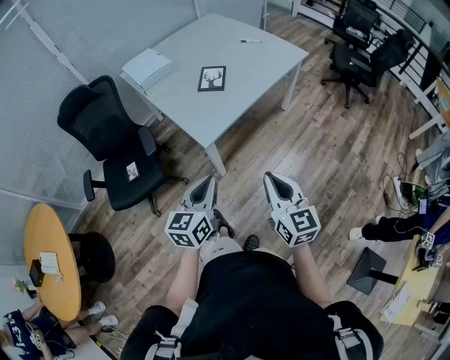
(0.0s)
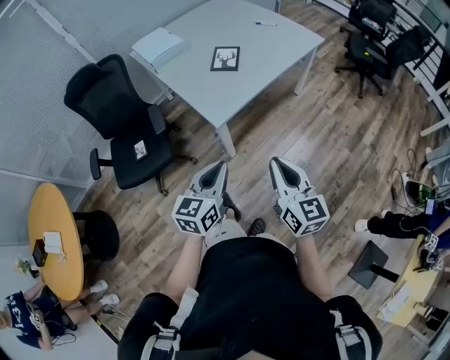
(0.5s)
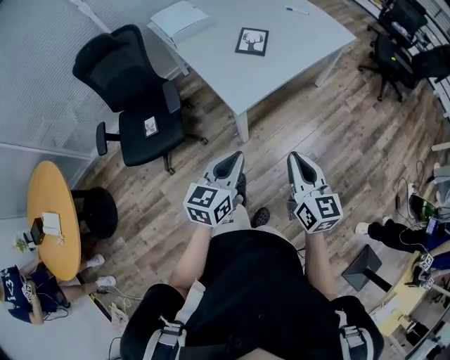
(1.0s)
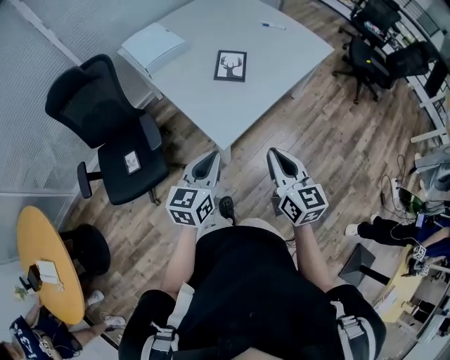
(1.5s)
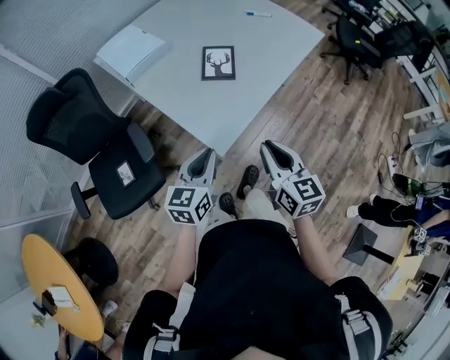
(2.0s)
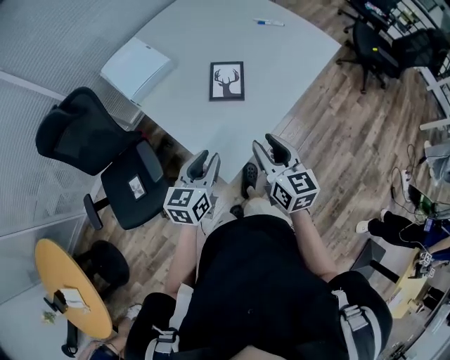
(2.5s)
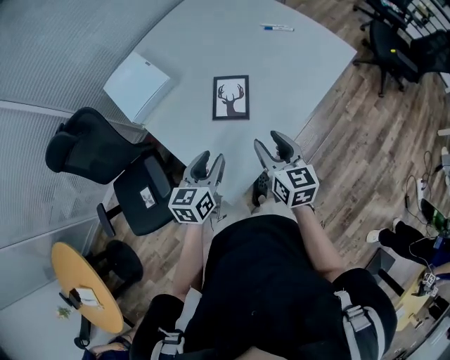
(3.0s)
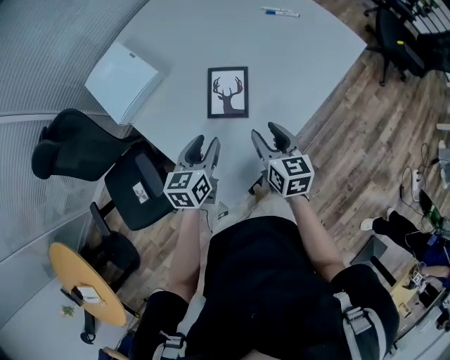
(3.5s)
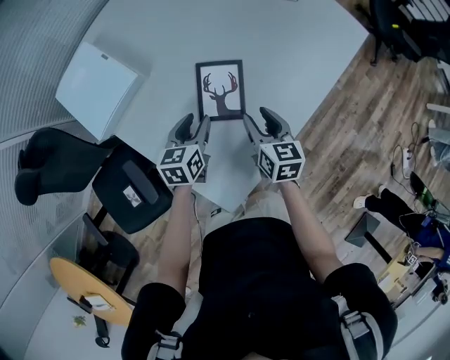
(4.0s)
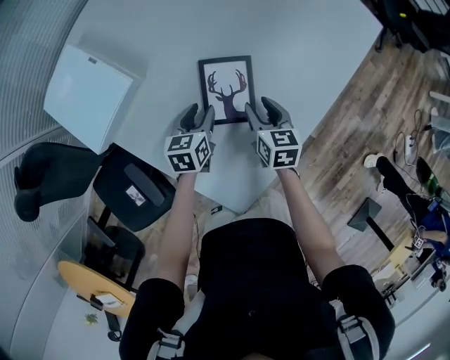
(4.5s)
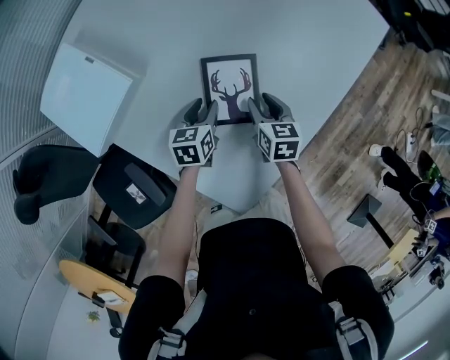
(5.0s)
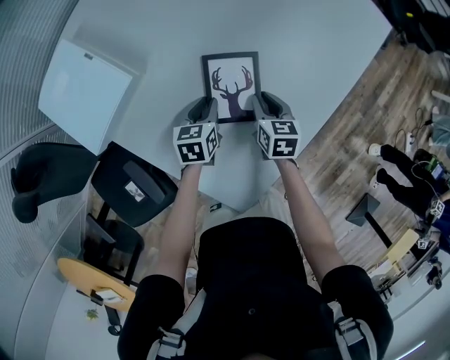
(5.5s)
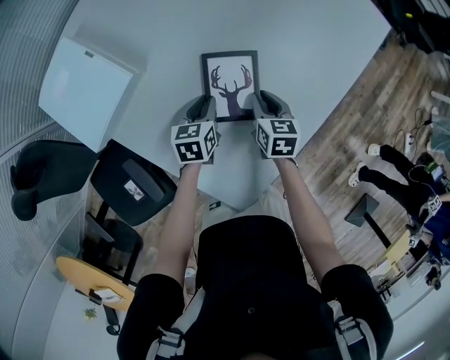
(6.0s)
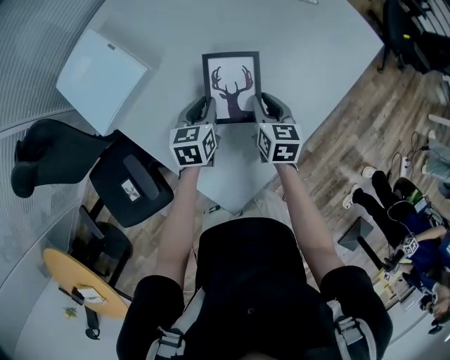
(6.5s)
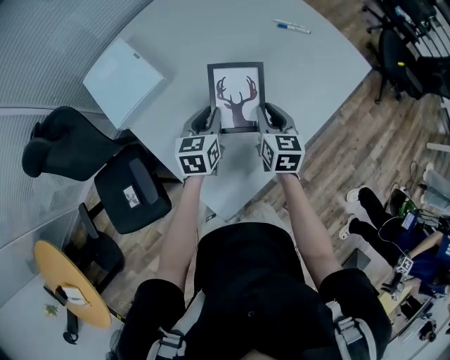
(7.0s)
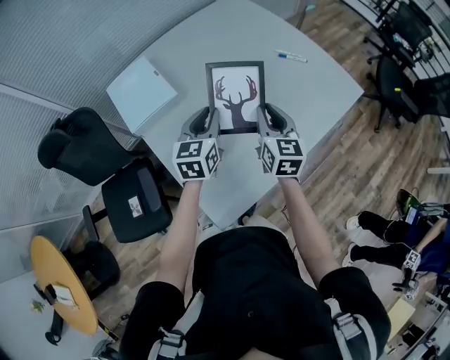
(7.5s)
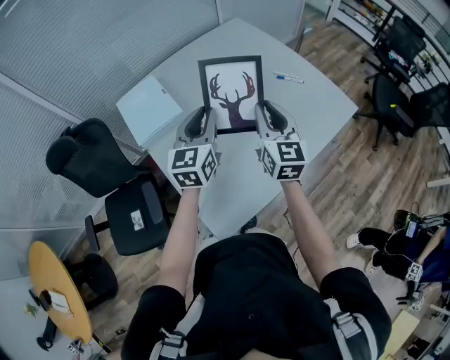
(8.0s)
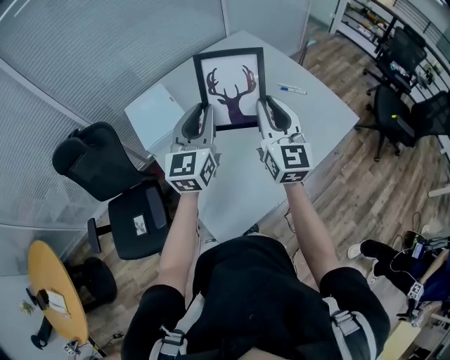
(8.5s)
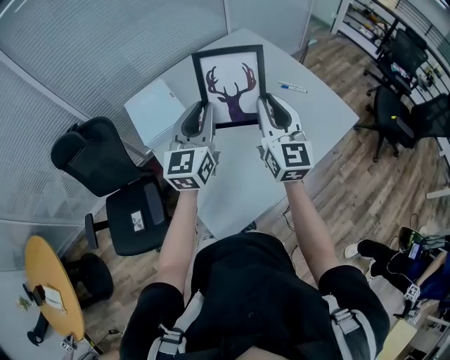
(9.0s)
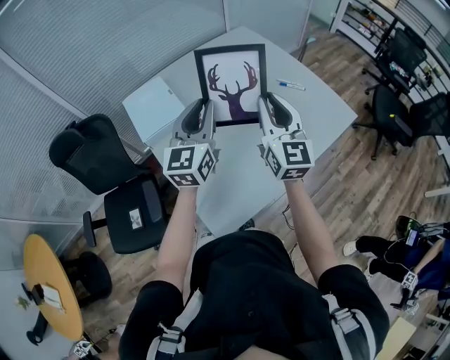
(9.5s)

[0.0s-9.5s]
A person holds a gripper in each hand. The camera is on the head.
0.0s to 2.0s: Both grippers travel together forward and to the left, approximately 30 cm.
2.0s to 4.0s: The pair of grippers is taken forward, approximately 40 cm. The left gripper opens up, while the right gripper heads downward, covering some 20 cm, and opens up.
4.0s to 5.5s: The two grippers go roughly 15 cm downward and forward. The right gripper closes up.
5.5s to 7.5s: The grippers both shift upward by about 30 cm. The right gripper angles its fingers upward, by some 30 degrees. Meanwhile the left gripper changes its angle by approximately 30 degrees.
7.5s to 9.5s: The grippers both shift upward by about 15 cm. The right gripper changes its angle by some 30 degrees. Meanwhile the left gripper changes its angle by some 20 degrees.

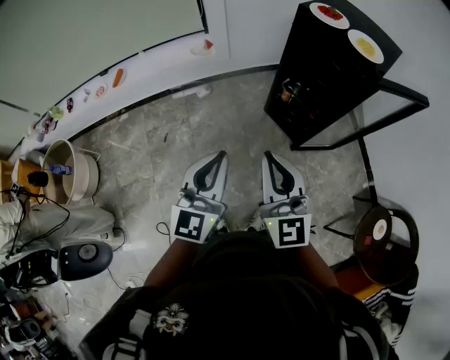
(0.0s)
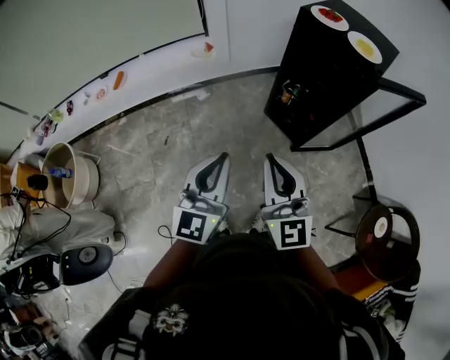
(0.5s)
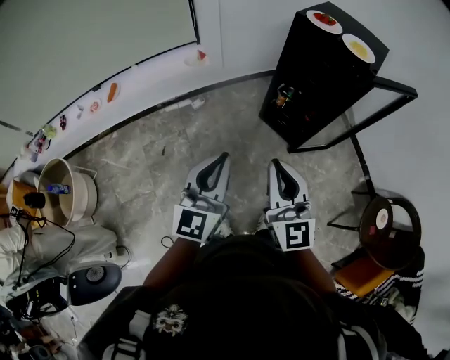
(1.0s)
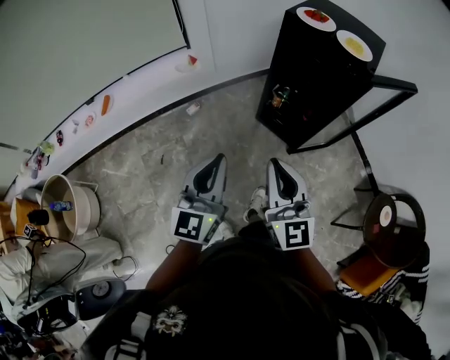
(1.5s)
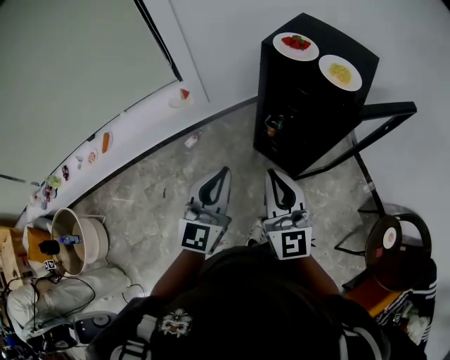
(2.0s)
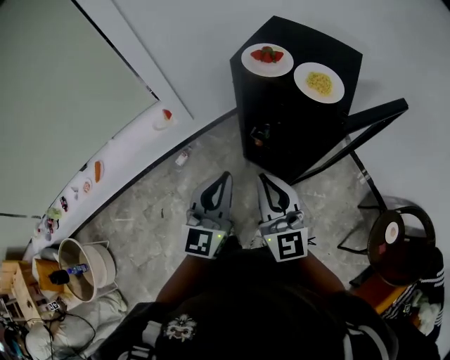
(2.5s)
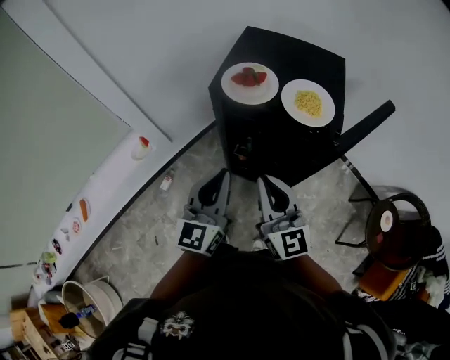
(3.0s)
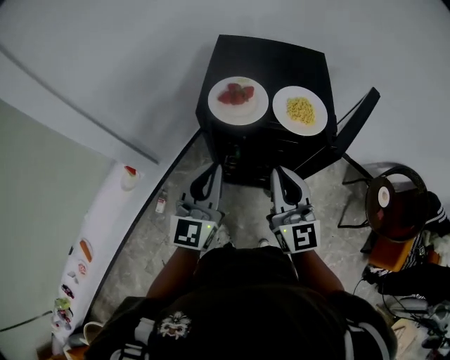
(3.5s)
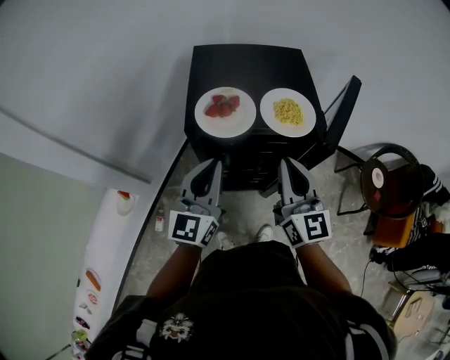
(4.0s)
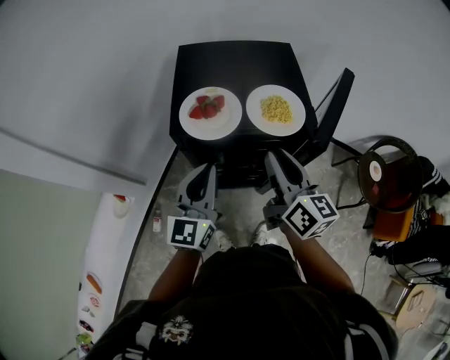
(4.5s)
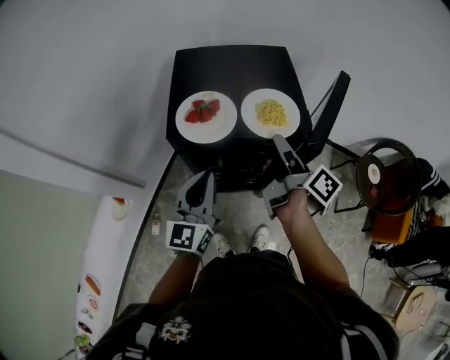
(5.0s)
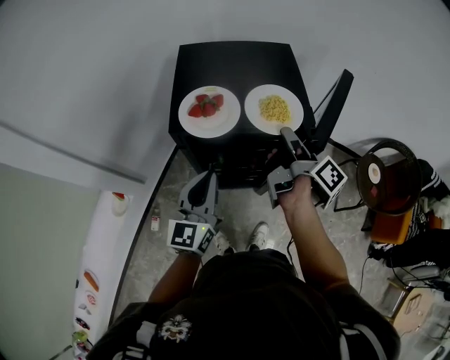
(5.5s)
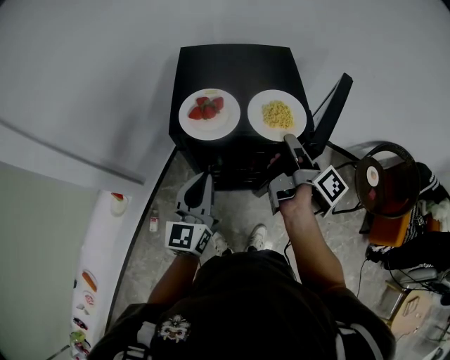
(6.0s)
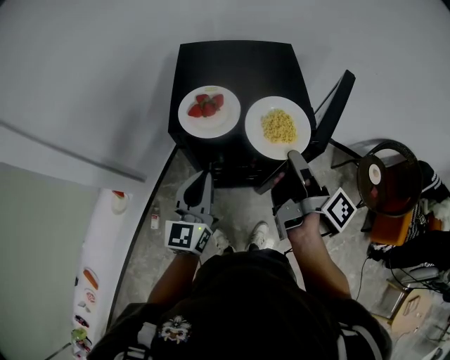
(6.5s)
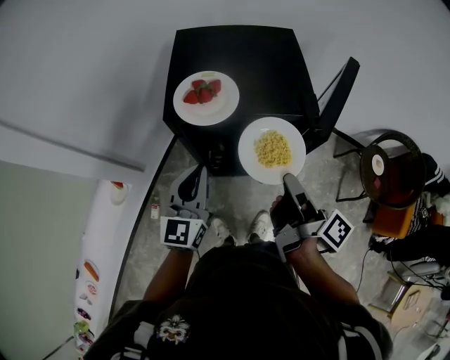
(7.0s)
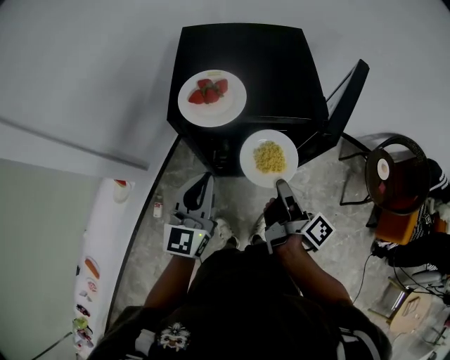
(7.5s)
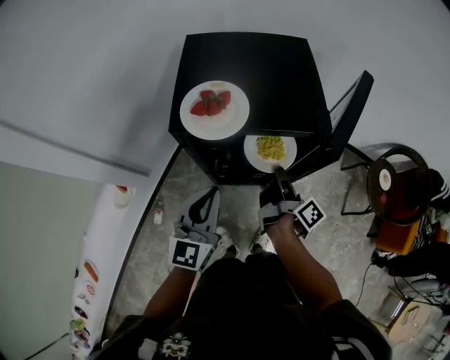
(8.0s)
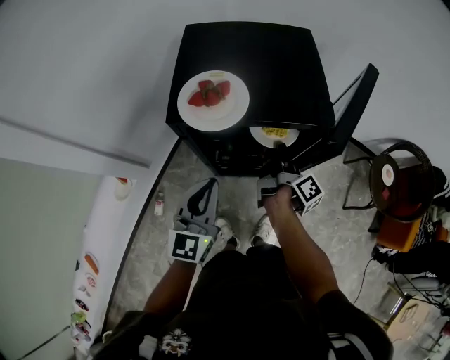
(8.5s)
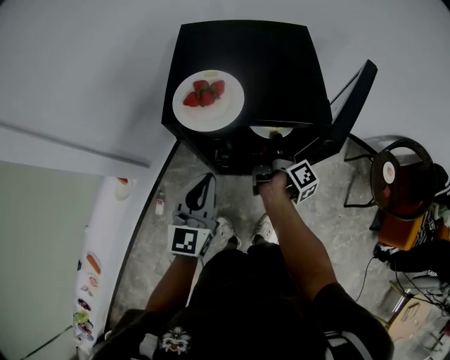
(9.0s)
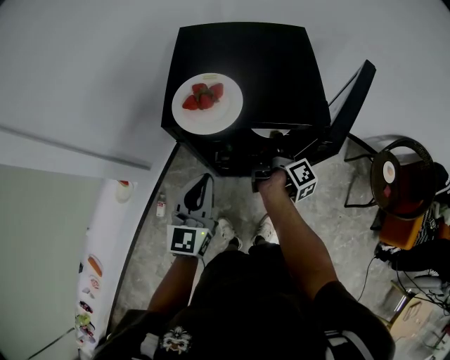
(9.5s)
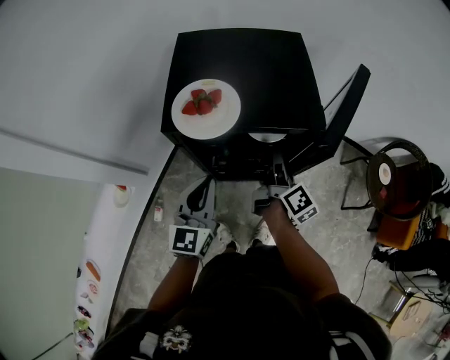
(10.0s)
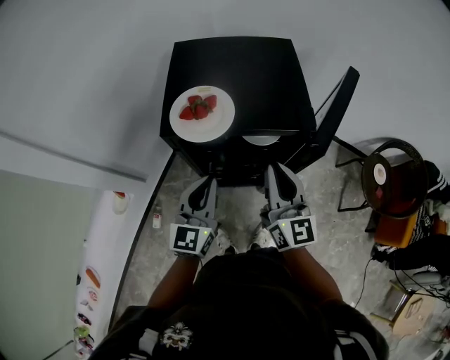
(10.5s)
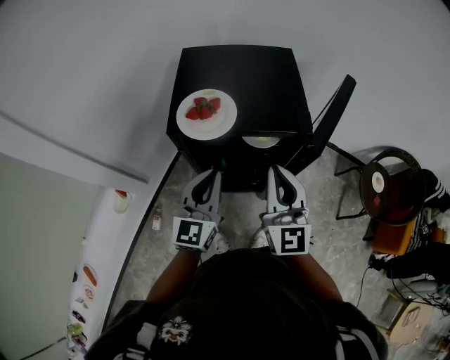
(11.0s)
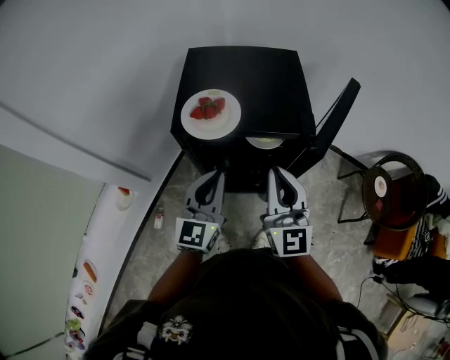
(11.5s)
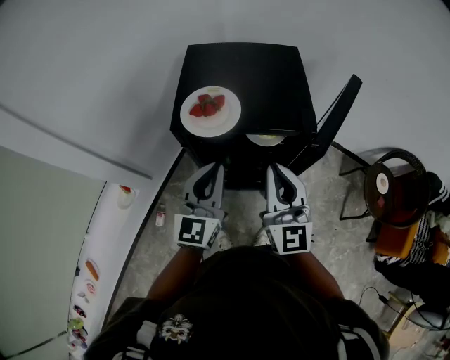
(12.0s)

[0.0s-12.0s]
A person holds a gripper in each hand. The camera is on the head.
0.0s to 2.0s: The grippers both shift forward by about 15 cm.
2.0s to 4.0s: The left gripper shifts by approximately 35 cm, and rotates approximately 40 degrees. Meanwhile the right gripper moves some 30 cm, and rotates approximately 40 degrees.
4.0s to 6.0s: The right gripper is displaced forward and to the right by roughly 10 cm, rolls clockwise, seen from behind, by some 80 degrees, and opens and closes again.
6.0s to 8.0s: The right gripper shifts roughly 15 cm downward.
8.0s to 10.0s: The right gripper rotates some 20 degrees, and opens.
10.0s to 12.0s: The right gripper moves upward and backward, some 20 cm, rolls counterclockwise, seen from behind, by about 60 degrees, and closes its fingers. The left gripper shifts roughly 5 cm upward.

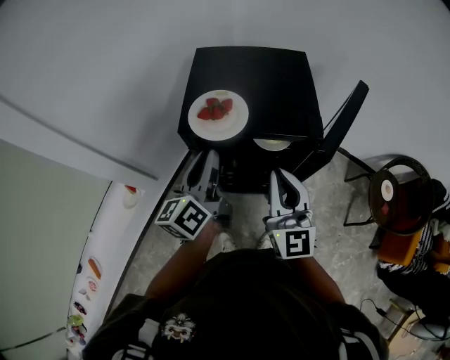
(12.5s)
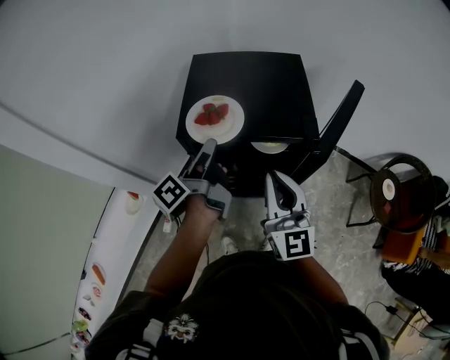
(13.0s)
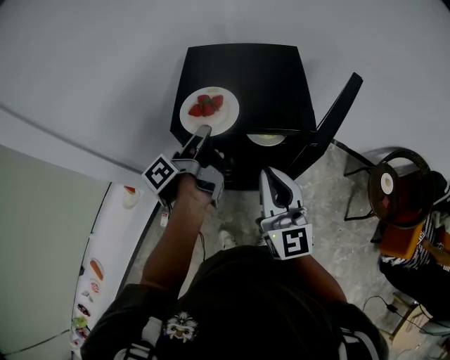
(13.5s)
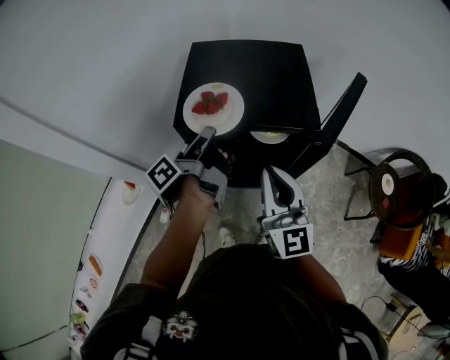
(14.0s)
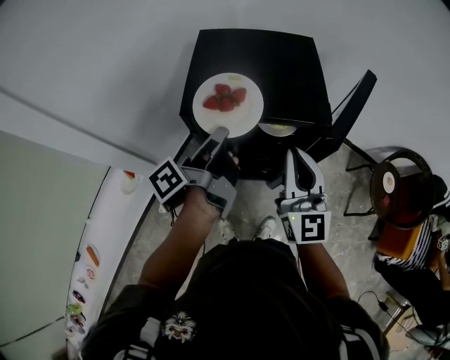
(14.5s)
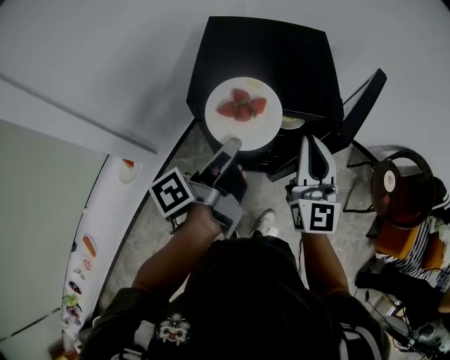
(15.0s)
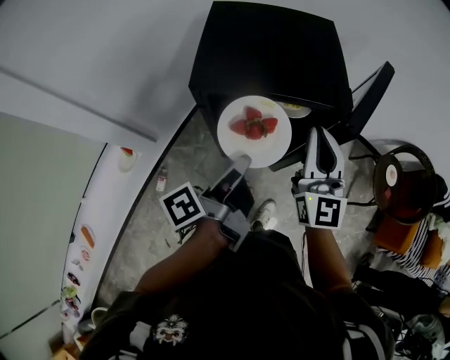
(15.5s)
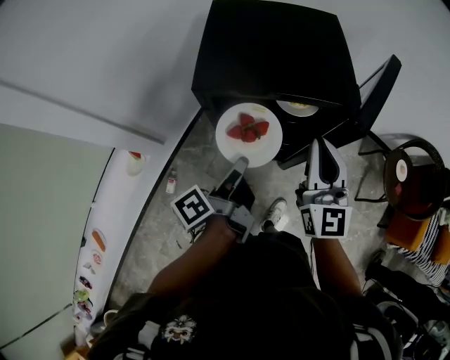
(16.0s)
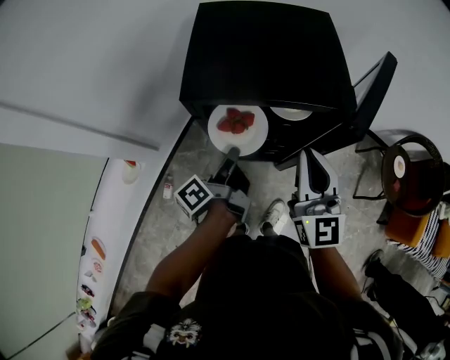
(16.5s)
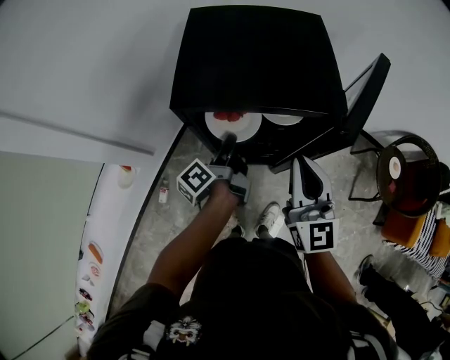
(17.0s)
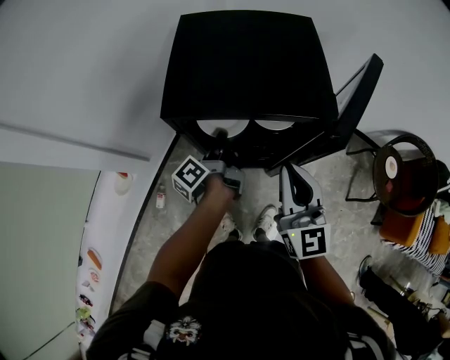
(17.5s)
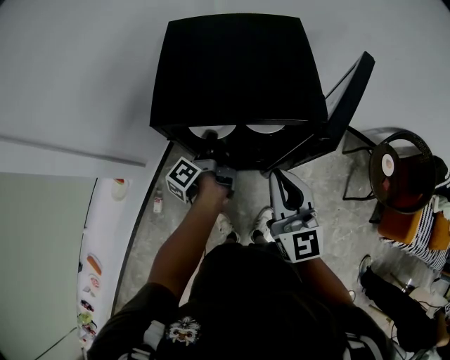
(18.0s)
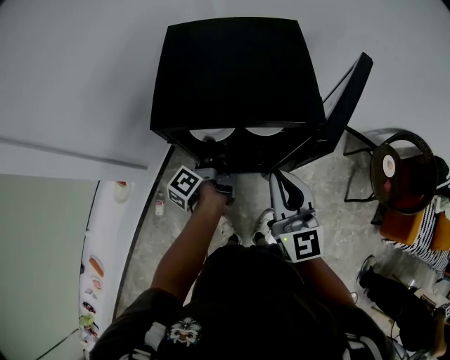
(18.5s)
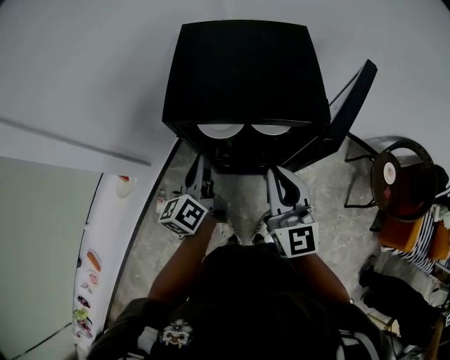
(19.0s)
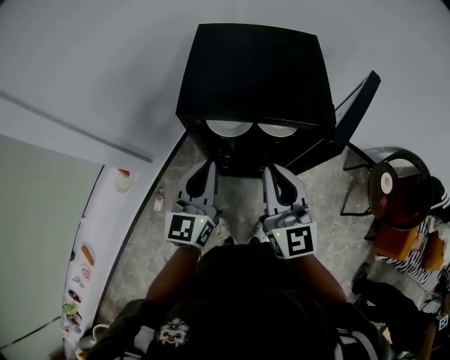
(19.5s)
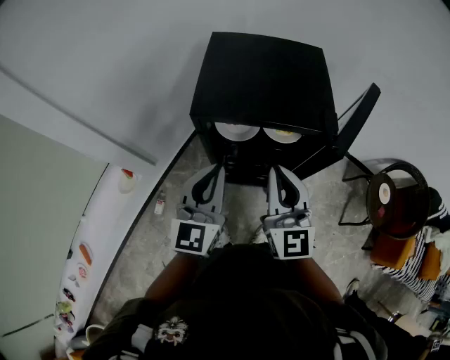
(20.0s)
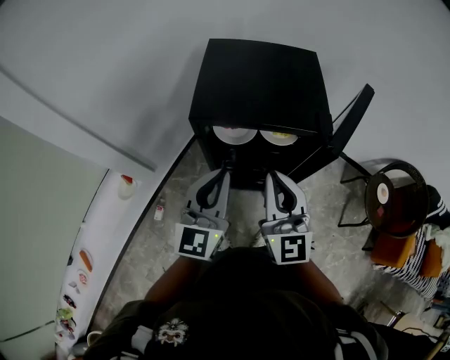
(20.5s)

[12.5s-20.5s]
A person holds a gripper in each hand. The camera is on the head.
12.5s to 14.5s: The left gripper rolls counterclockwise, seen from behind, by roughly 50 degrees.
14.5s to 16.5s: The left gripper shifts about 15 cm downward; the right gripper travels downward by roughly 5 cm.
16.5s to 18.5s: The left gripper is displaced forward by some 10 cm.
18.5s to 20.5s: The left gripper travels upward and backward by roughly 25 cm, and rotates around the line of its fingers by some 80 degrees, clockwise from behind, while the right gripper moves to the left and upward, approximately 10 cm.
